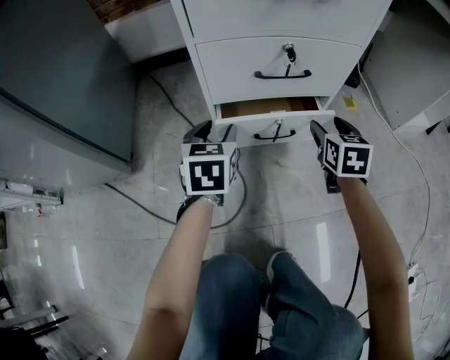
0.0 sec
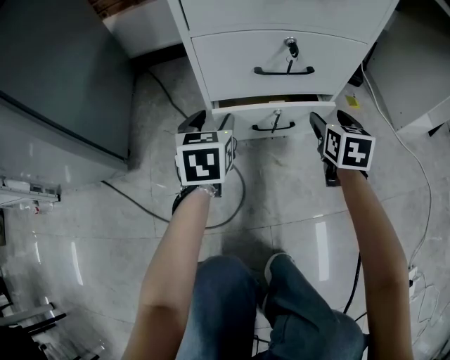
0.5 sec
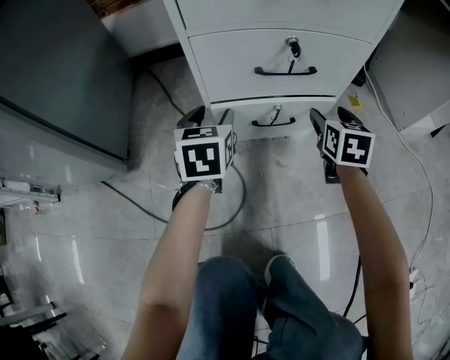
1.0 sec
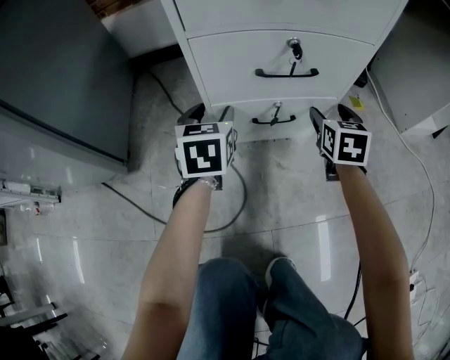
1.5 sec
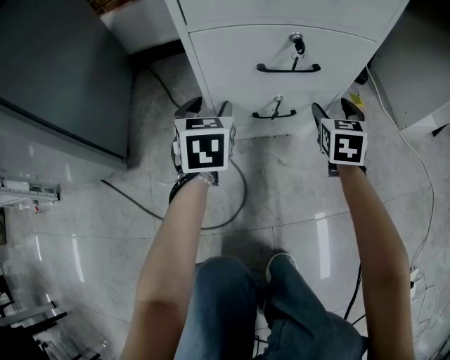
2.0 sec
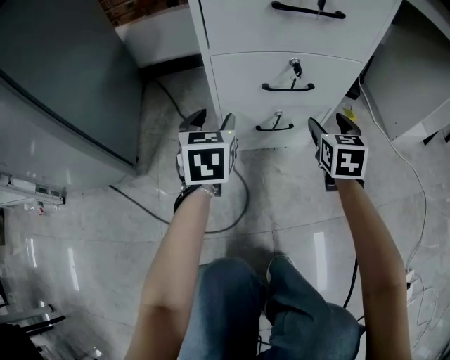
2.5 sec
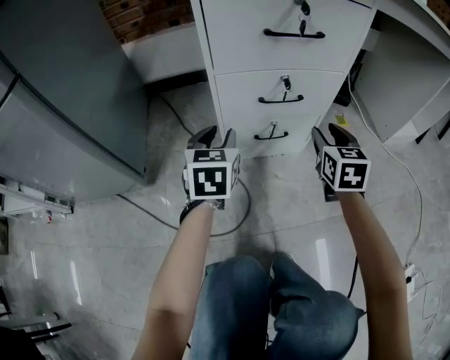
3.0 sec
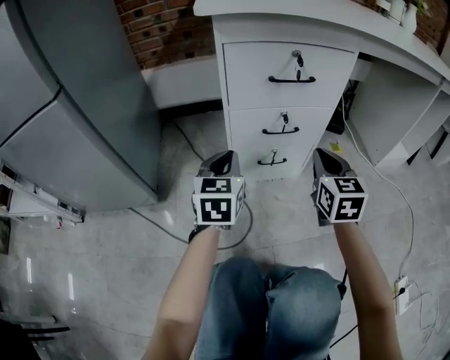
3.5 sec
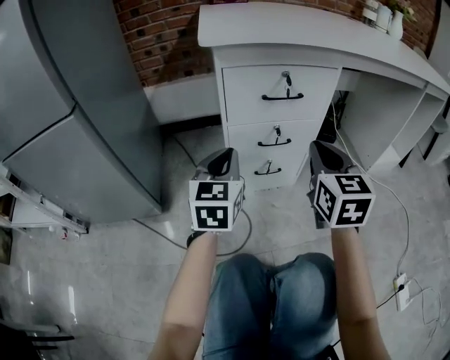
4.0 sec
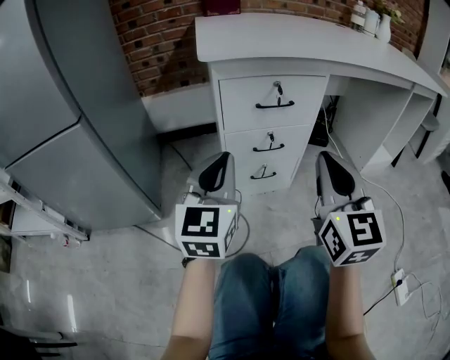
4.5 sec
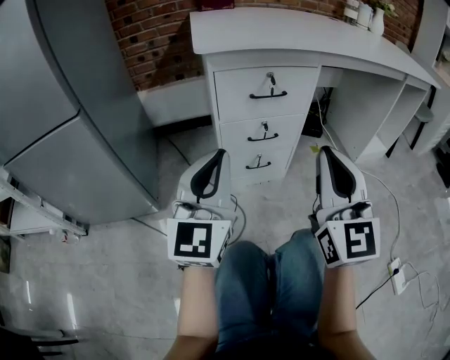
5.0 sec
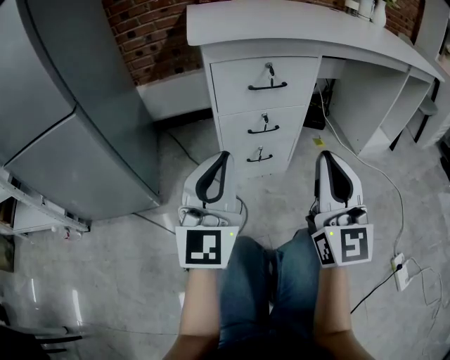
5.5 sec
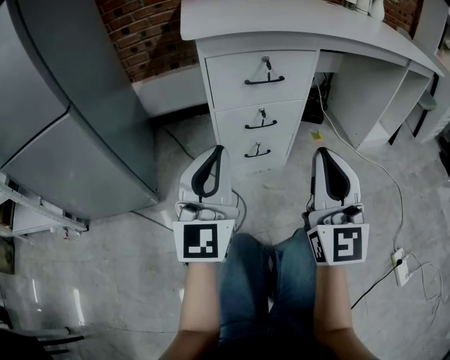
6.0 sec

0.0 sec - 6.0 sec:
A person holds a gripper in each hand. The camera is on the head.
0.0 sec - 2.0 sec: The left gripper moves roughly 5 cm; the right gripper goes about 5 cm forward.
2.0 sec - 4.0 sec: Both grippers travel together upward and backward, roughly 30 cm. The right gripper swivels approximately 20 degrees, and closes its fingers; the left gripper swivels about 20 degrees, and closes.
4.0 sec - 6.0 sec: Both grippers move backward and upward, roughly 15 cm. The left gripper swivels roughly 30 degrees. Meanwhile the right gripper changes its angle by roughly 30 degrees.

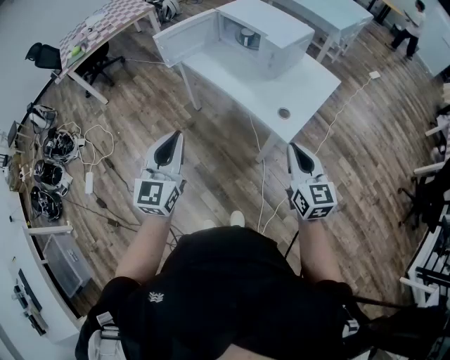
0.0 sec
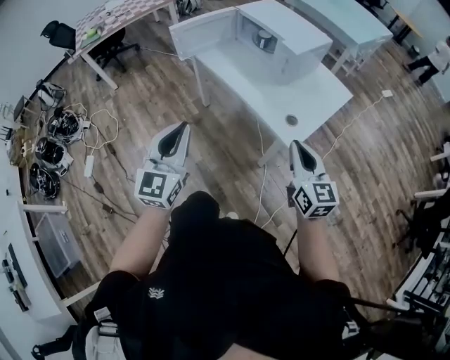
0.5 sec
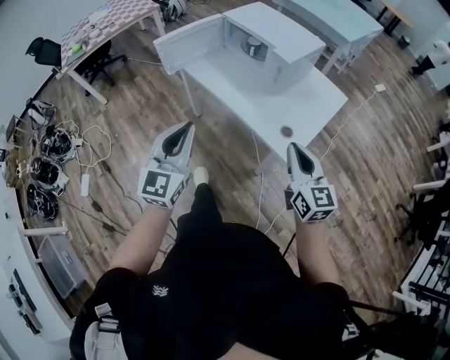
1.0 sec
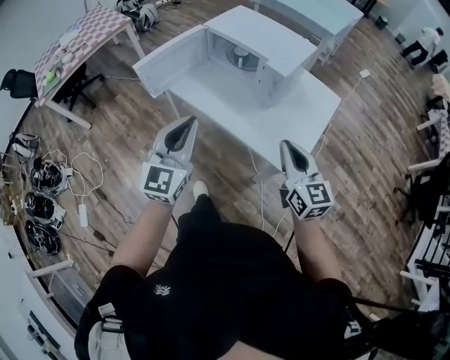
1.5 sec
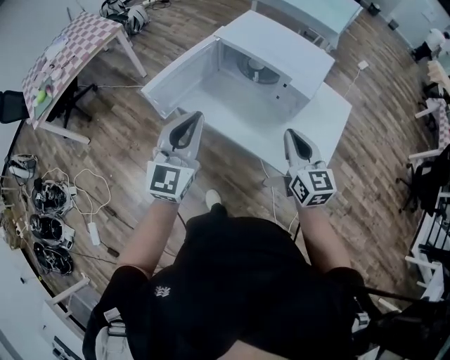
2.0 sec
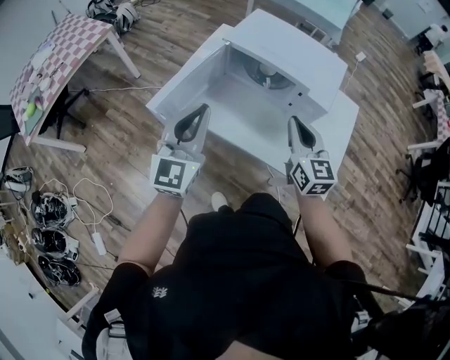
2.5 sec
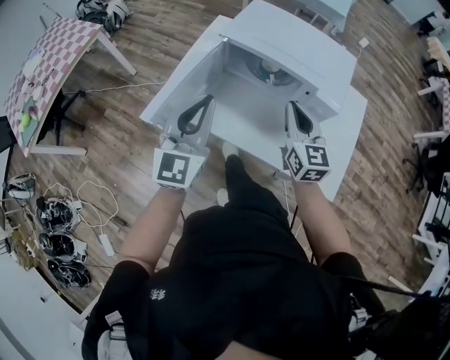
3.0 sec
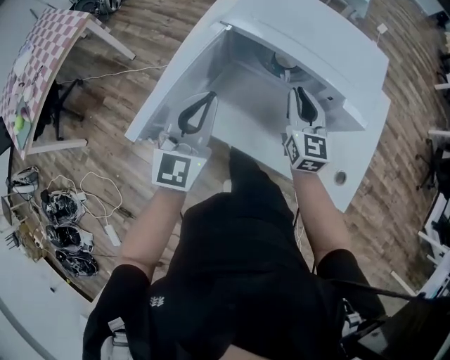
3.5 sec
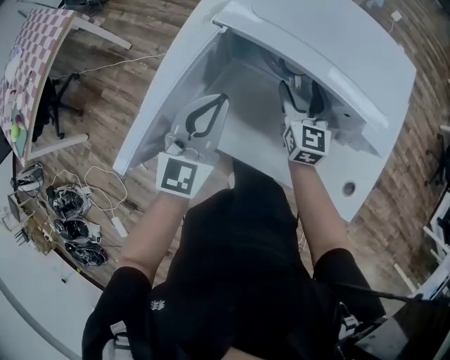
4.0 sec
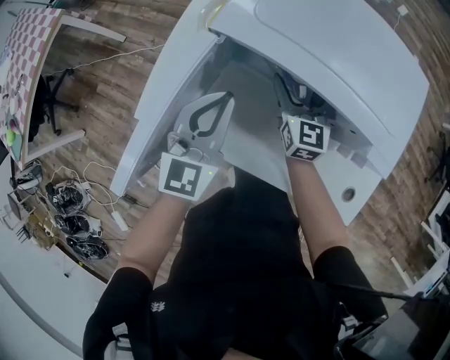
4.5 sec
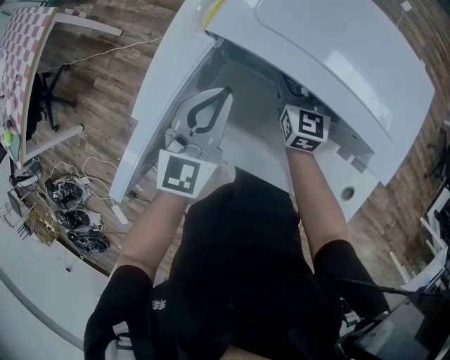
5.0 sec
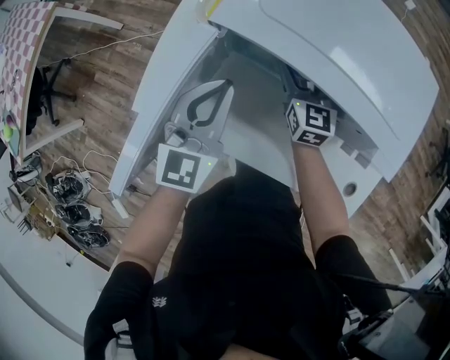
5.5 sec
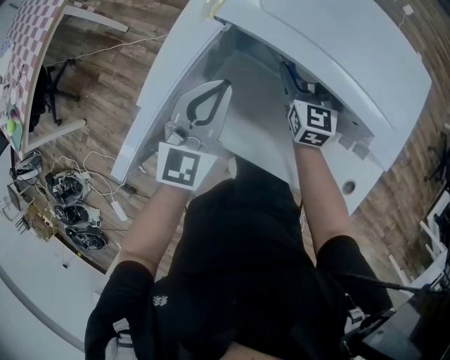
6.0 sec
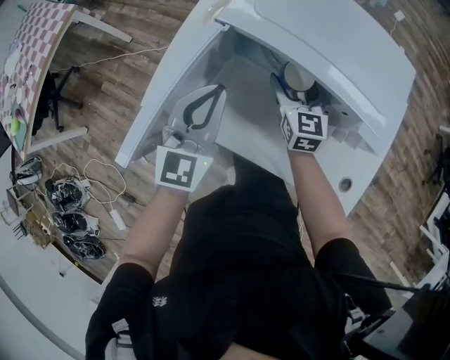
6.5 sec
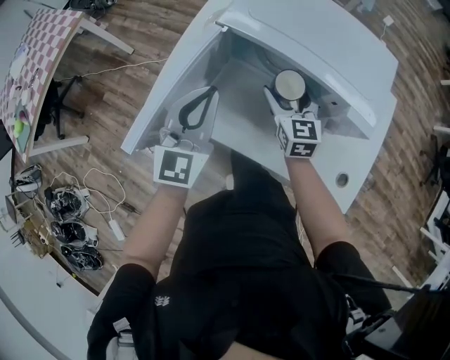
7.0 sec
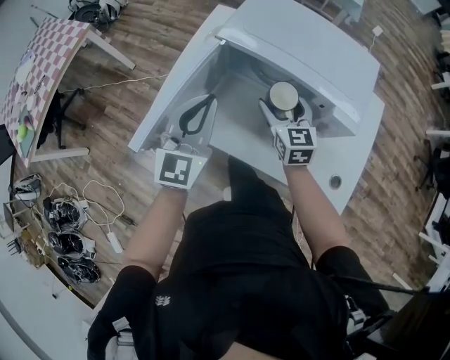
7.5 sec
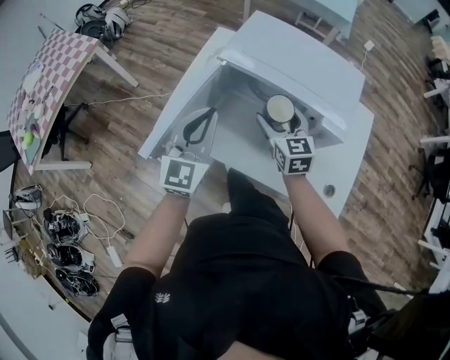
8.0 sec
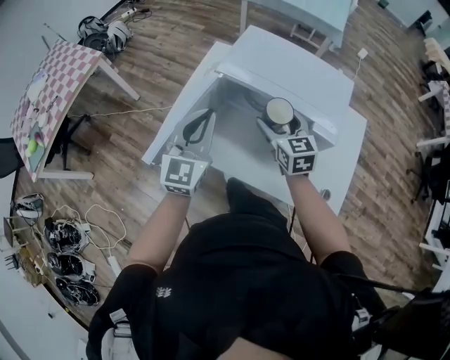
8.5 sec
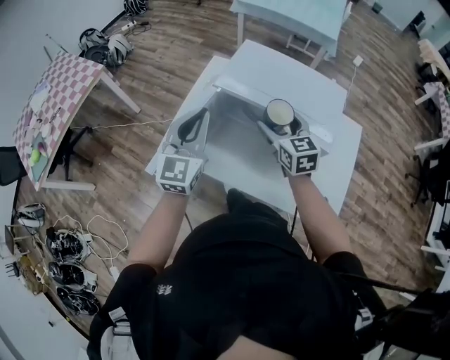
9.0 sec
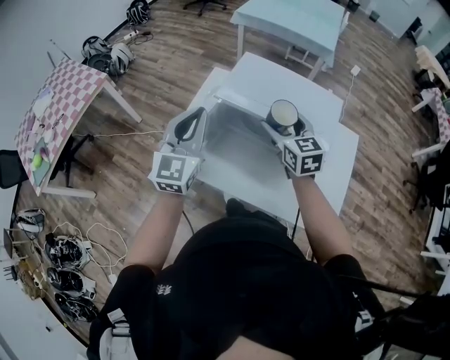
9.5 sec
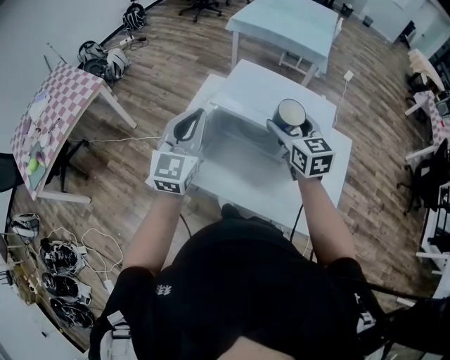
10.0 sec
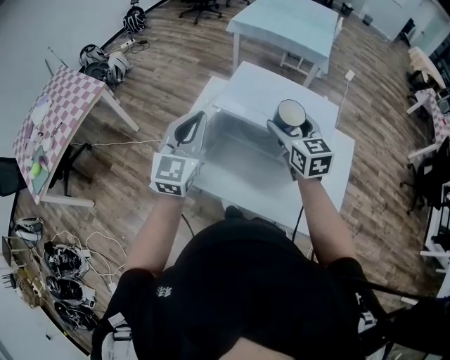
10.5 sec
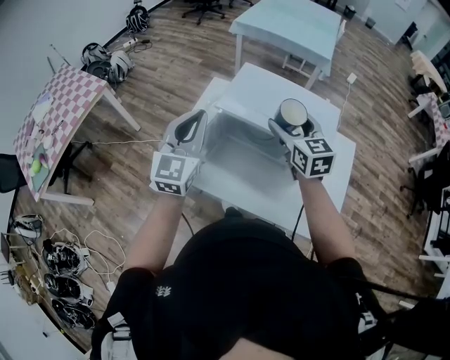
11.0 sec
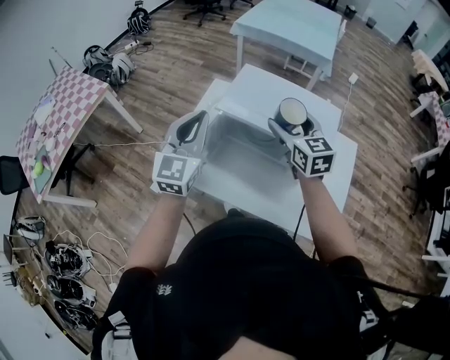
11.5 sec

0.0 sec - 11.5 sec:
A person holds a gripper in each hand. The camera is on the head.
0.0 sec - 2.0 sec: The right gripper heads forward and to the left, covering approximately 40 cm. Meanwhile the left gripper is displaced forward by about 40 cm.
2.0 sec - 4.0 sec: Both grippers travel together forward and downward, approximately 40 cm. The right gripper opens up.
4.0 sec - 6.0 sec: The right gripper shifts approximately 5 cm forward.
6.0 sec - 7.5 sec: The left gripper is displaced upward and backward by about 15 cm. Meanwhile the right gripper moves backward and upward, roughly 15 cm.
7.5 sec - 9.5 sec: Both grippers move upward, approximately 15 cm.
9.5 sec - 11.5 sec: The right gripper changes place by roughly 5 cm.

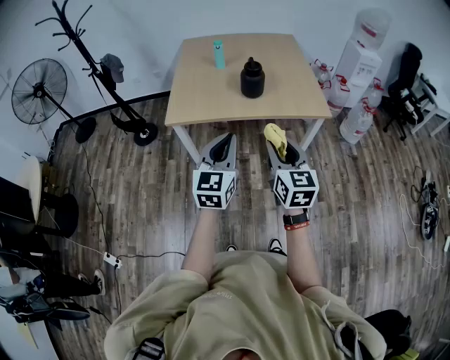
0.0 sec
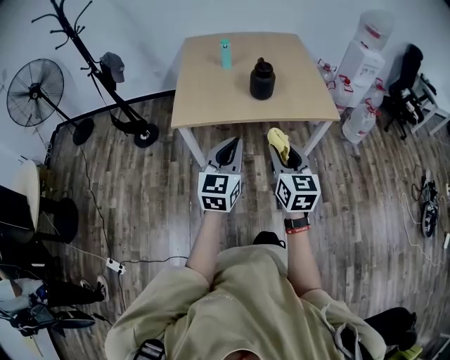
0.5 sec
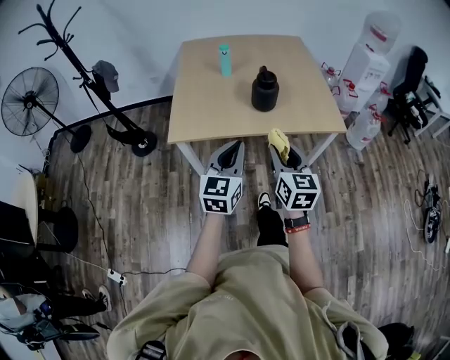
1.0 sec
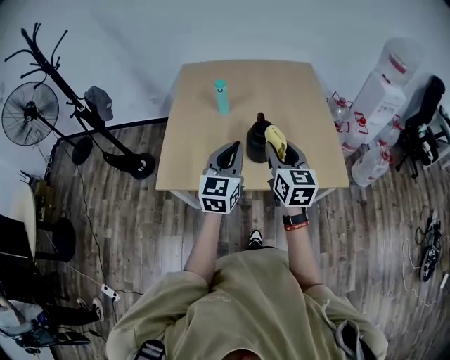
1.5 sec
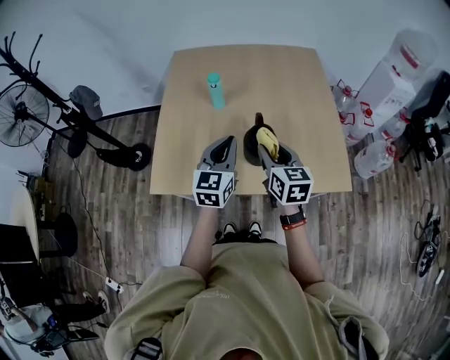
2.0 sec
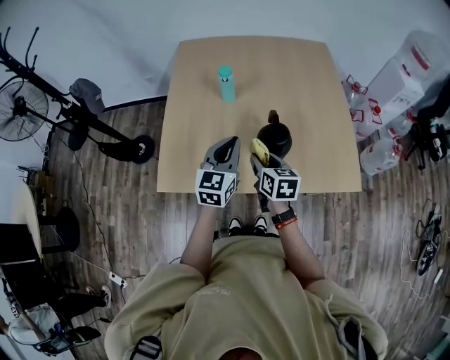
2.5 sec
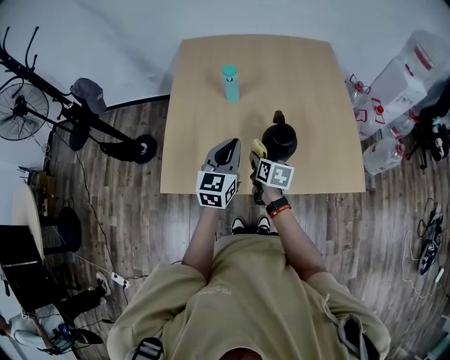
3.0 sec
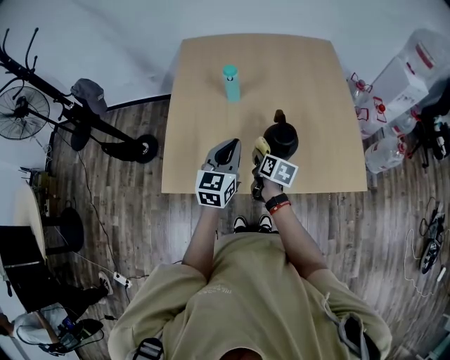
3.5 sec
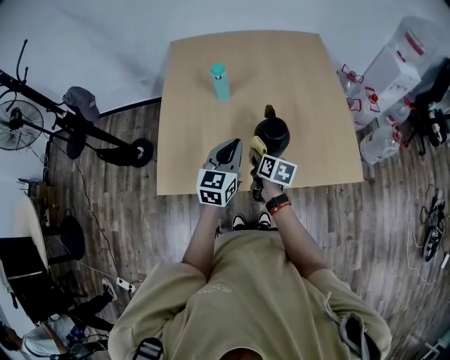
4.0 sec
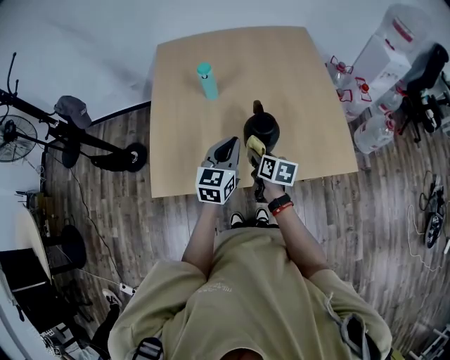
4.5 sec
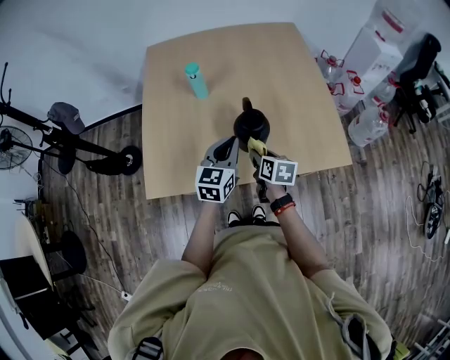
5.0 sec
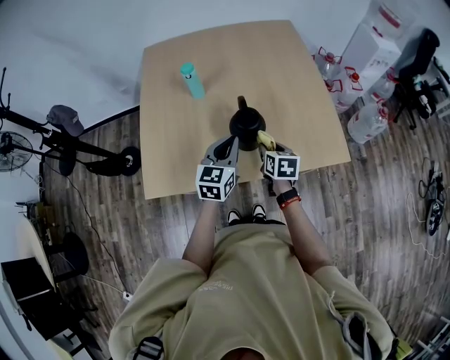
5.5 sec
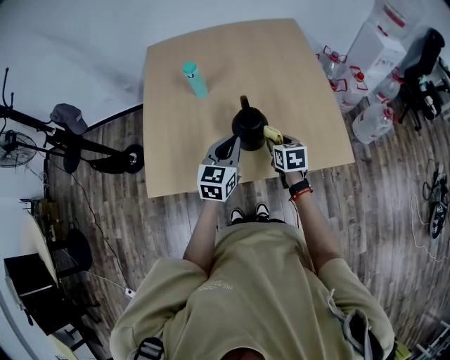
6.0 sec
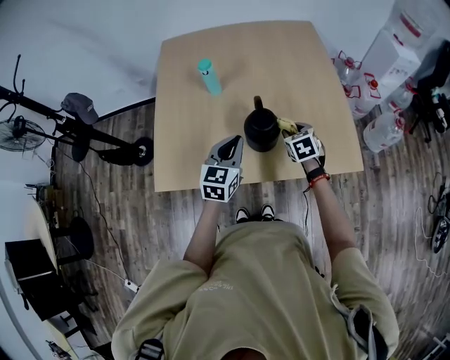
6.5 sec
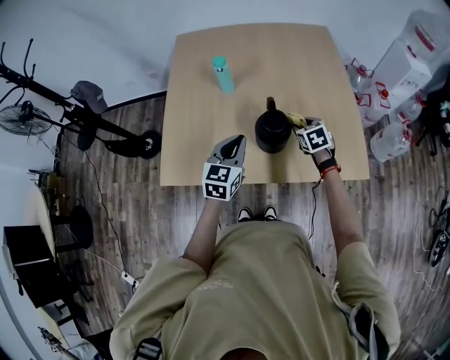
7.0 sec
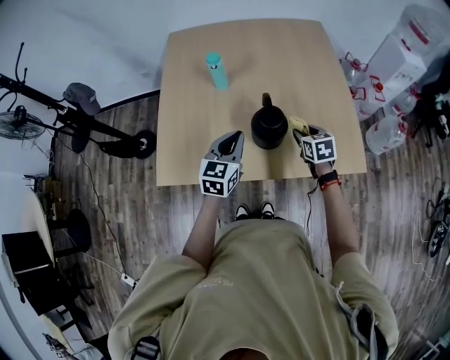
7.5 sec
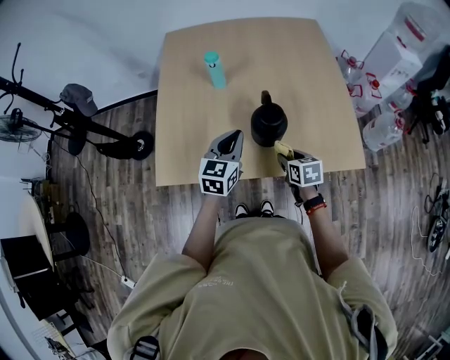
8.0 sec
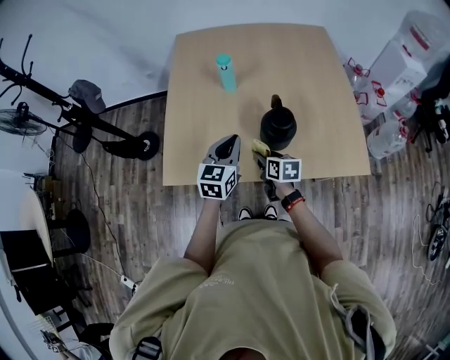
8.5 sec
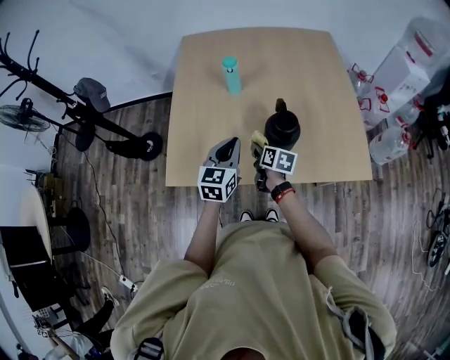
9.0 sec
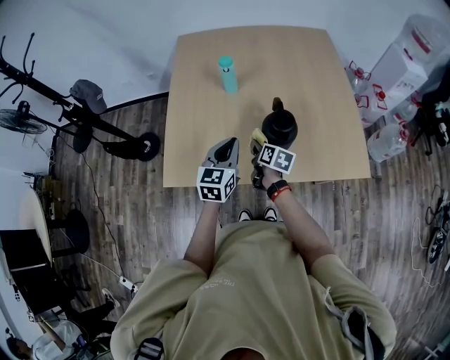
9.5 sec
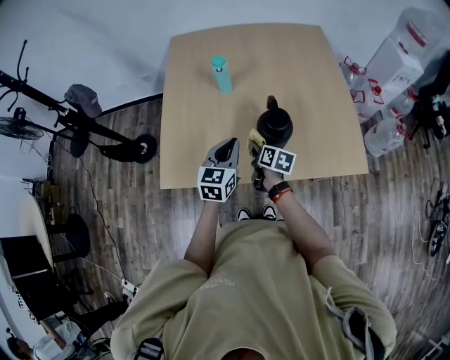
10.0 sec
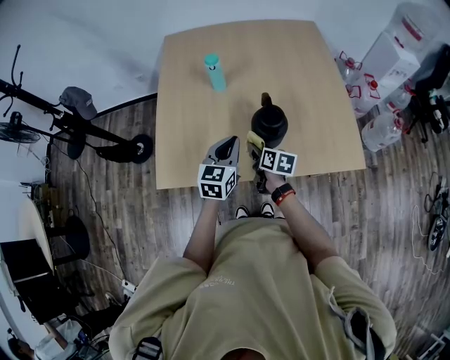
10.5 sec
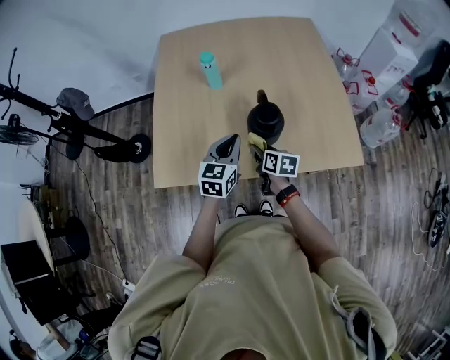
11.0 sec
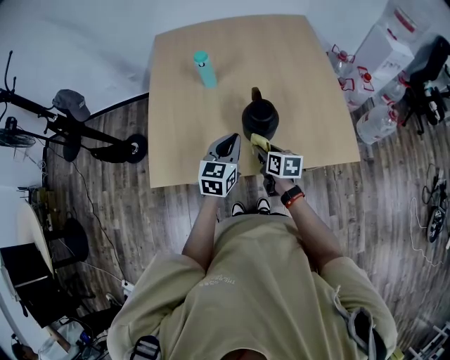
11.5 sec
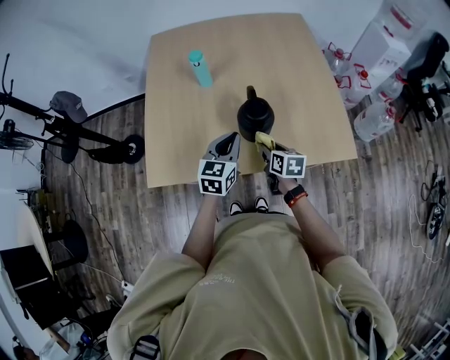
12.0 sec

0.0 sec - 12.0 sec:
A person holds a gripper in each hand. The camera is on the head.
0.0 sec - 2.0 sec: The pair of grippers is taken forward, some 60 cm.
2.0 sec - 4.0 sec: The left gripper is displaced downward by roughly 10 cm, while the right gripper goes about 20 cm downward, and rotates about 40 degrees.
4.0 sec - 6.0 sec: The left gripper goes some 10 cm to the right; the right gripper goes approximately 15 cm to the right, and rotates roughly 30 degrees.
6.0 sec - 8.0 sec: The right gripper shifts some 5 cm backward. The left gripper shifts roughly 5 cm to the left.
8.0 sec - 10.0 sec: The right gripper travels to the left and forward by roughly 15 cm, and changes its angle by roughly 30 degrees.
10.0 sec - 12.0 sec: The left gripper is displaced to the right by roughly 10 cm; the right gripper is displaced to the right and backward by roughly 10 cm.
